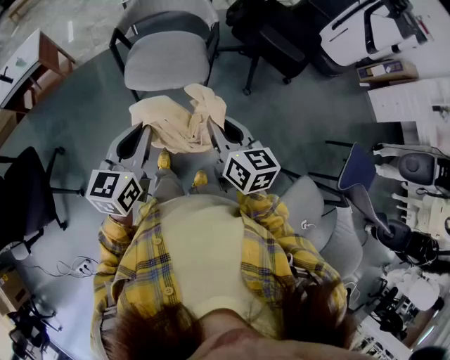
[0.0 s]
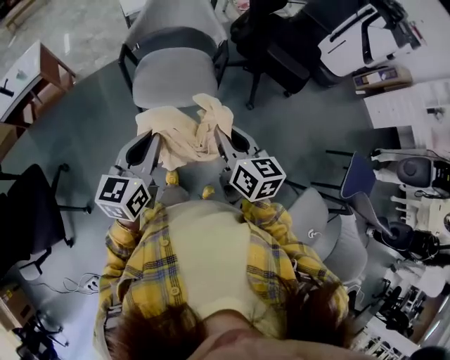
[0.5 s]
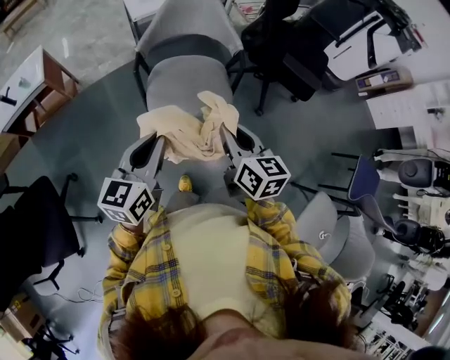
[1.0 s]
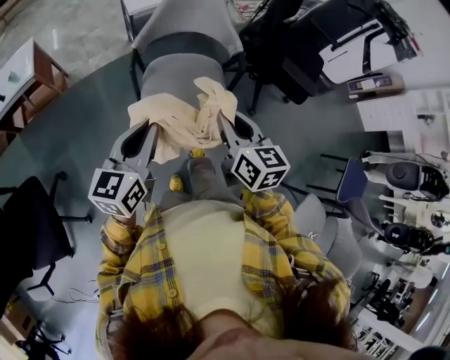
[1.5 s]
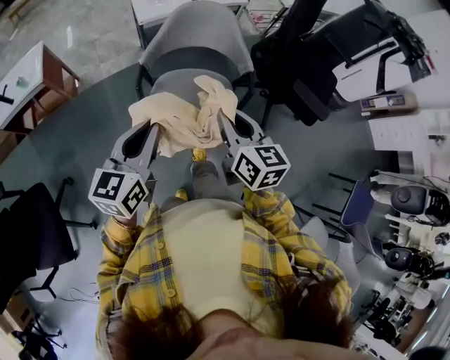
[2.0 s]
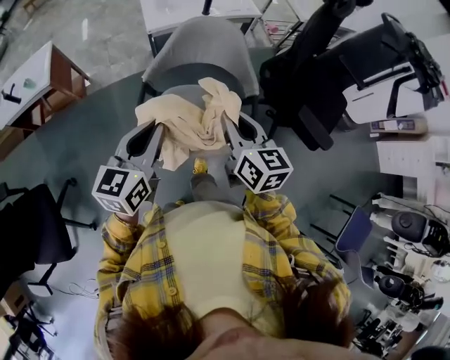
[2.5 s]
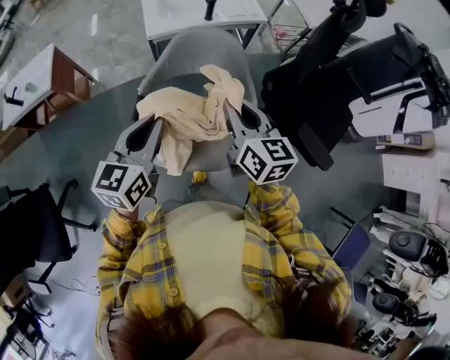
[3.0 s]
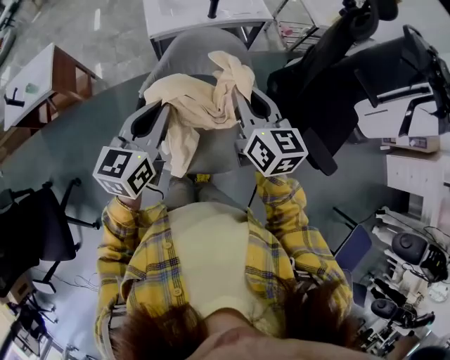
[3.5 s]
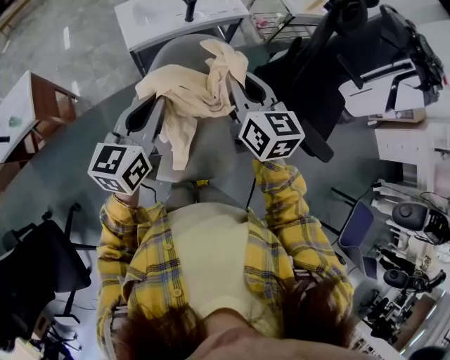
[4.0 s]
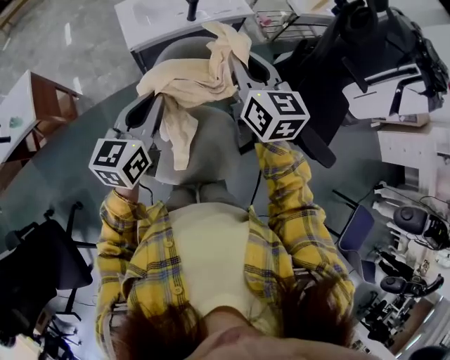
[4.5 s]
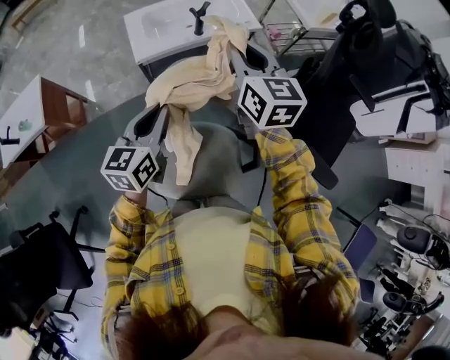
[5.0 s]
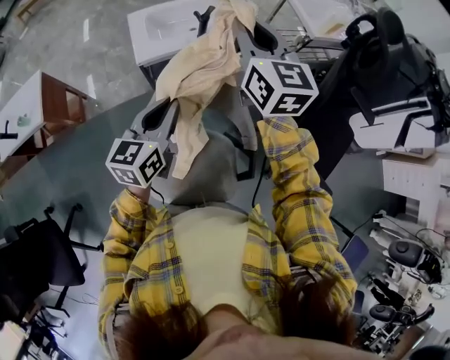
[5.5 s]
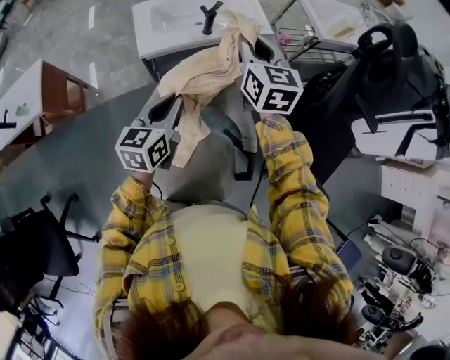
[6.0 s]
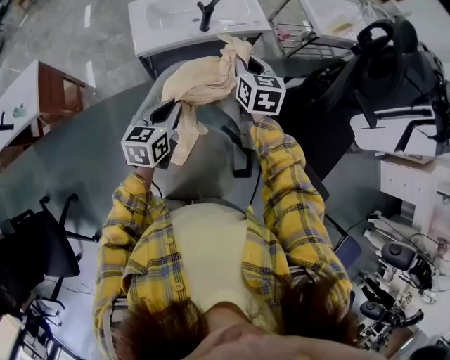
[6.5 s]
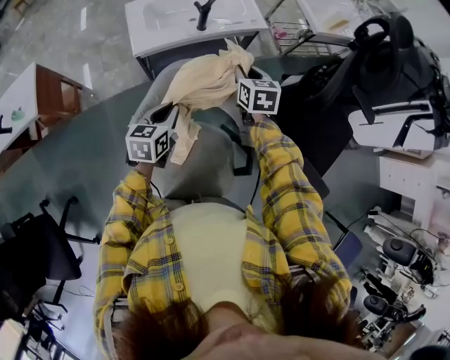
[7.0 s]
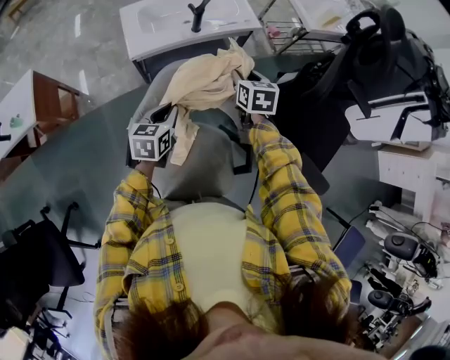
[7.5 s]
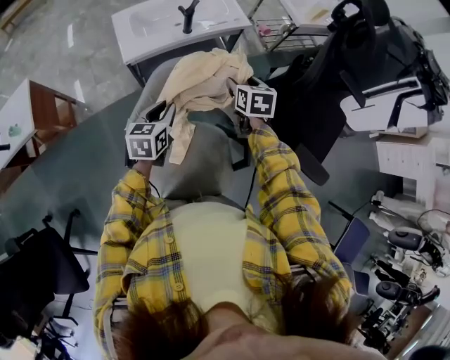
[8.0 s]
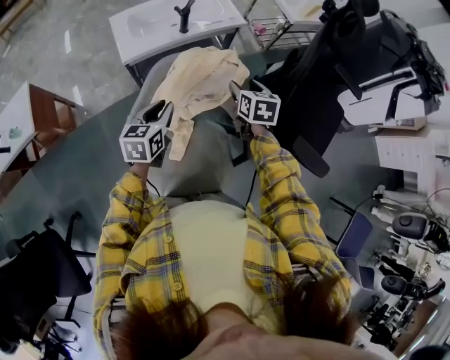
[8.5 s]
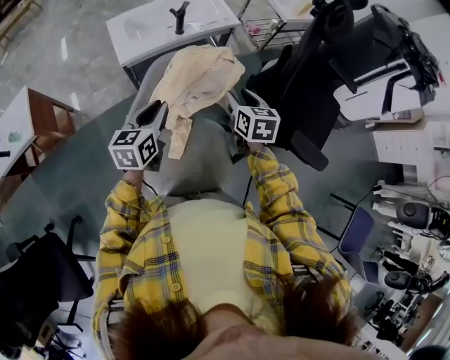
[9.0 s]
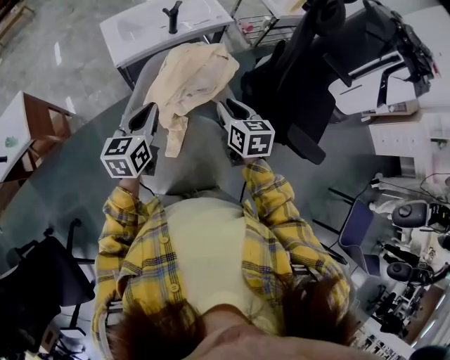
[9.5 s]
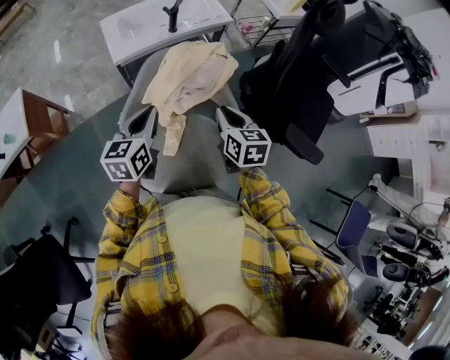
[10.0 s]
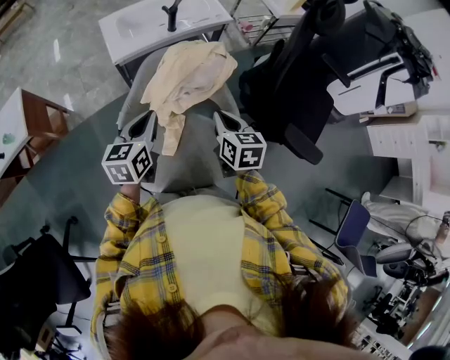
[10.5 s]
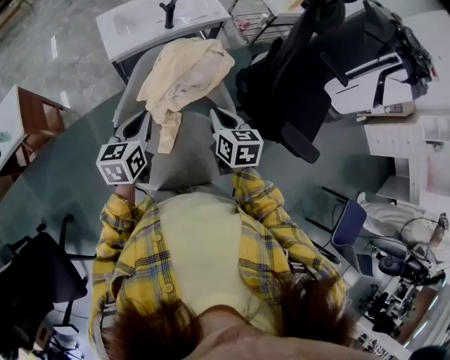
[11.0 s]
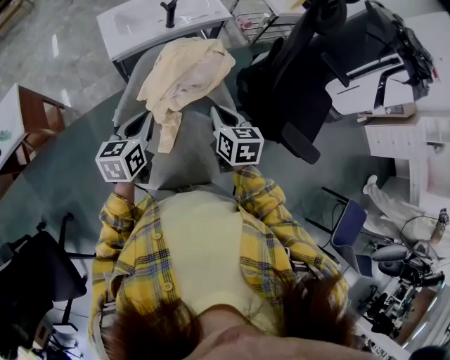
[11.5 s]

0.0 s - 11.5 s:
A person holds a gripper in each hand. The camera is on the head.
0.0 s - 2.0 s: The two grippers go some 25 cm forward and to the left.
2.0 s - 4.0 s: The two grippers go approximately 30 cm forward.
4.0 s - 6.0 s: The left gripper heads forward and downward, covering some 15 cm. The right gripper moves forward, some 25 cm.
6.0 s - 7.5 s: The right gripper is displaced downward by about 20 cm, and changes its angle by approximately 30 degrees. The left gripper travels downward by approximately 10 cm.
7.5 s - 9.5 s: The left gripper travels upward and backward by some 15 cm; the right gripper travels backward by roughly 20 cm, and opens and closes again.
9.5 s - 11.5 s: The right gripper closes.

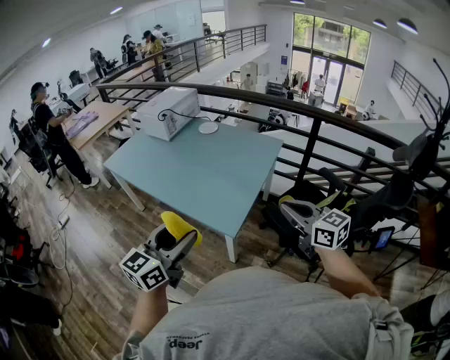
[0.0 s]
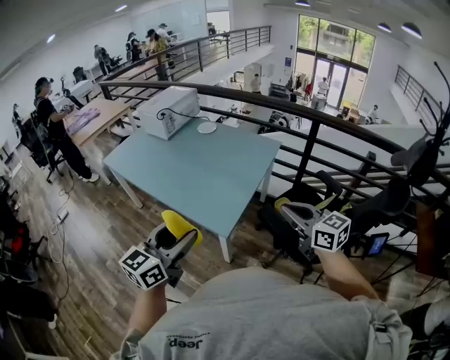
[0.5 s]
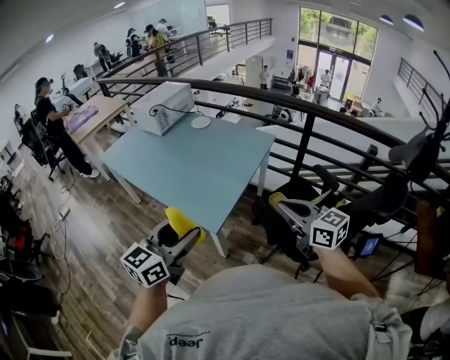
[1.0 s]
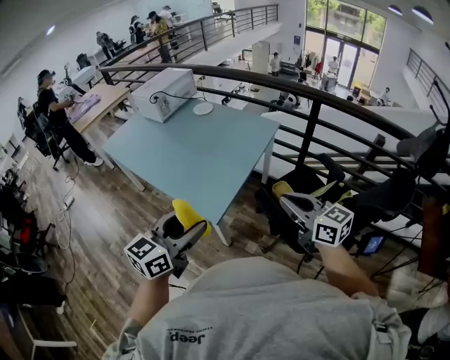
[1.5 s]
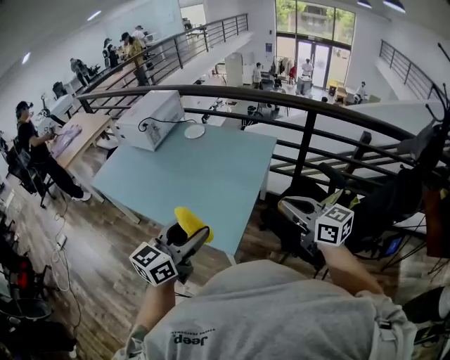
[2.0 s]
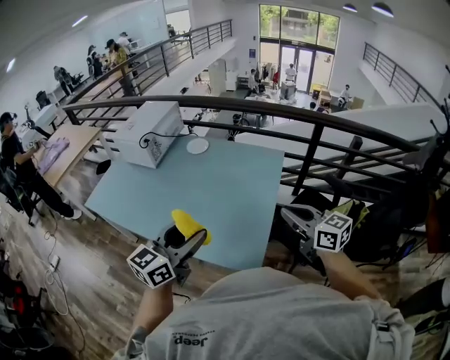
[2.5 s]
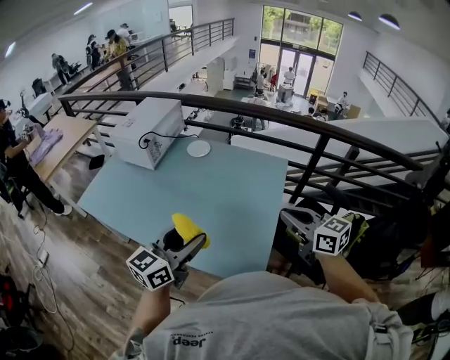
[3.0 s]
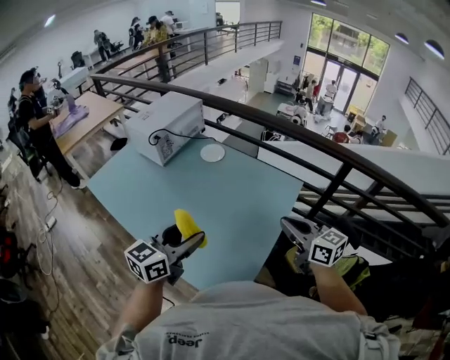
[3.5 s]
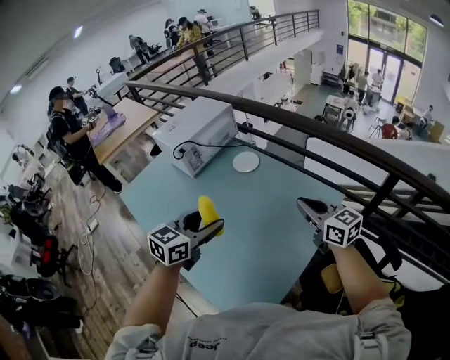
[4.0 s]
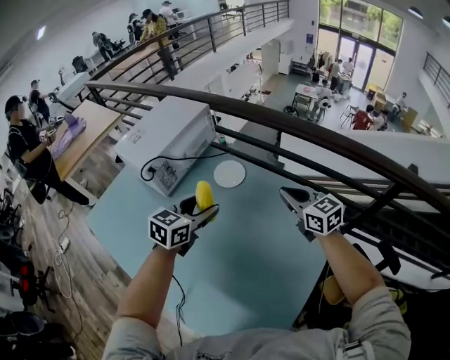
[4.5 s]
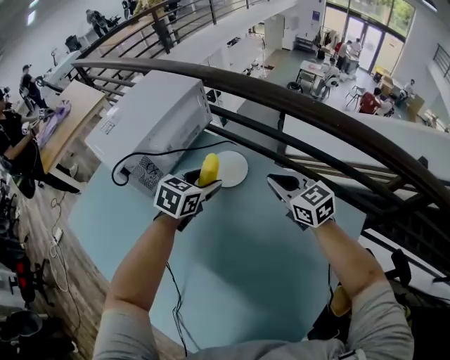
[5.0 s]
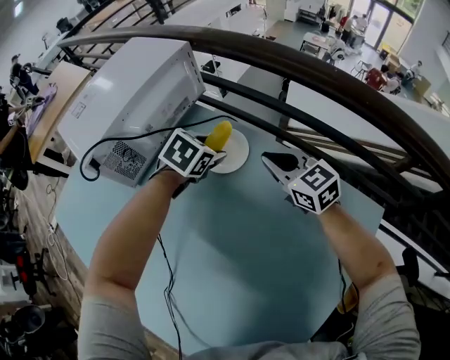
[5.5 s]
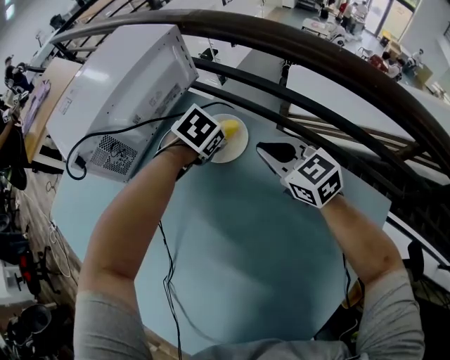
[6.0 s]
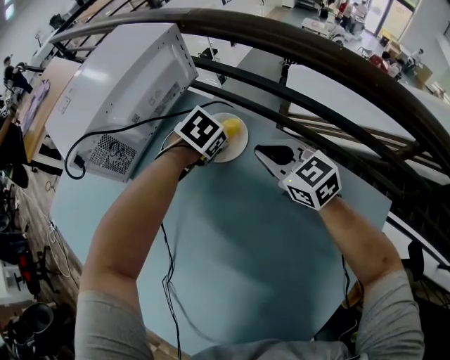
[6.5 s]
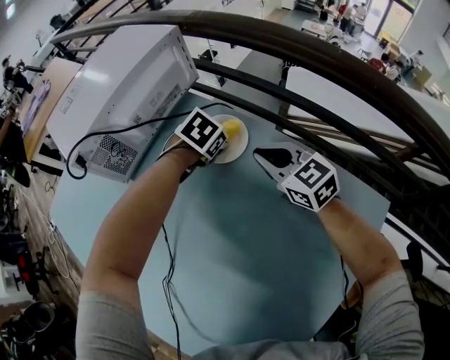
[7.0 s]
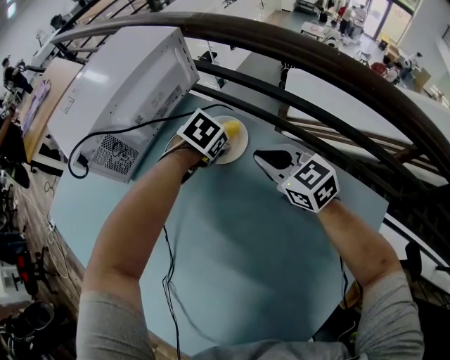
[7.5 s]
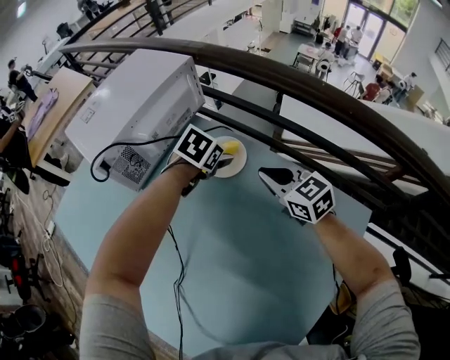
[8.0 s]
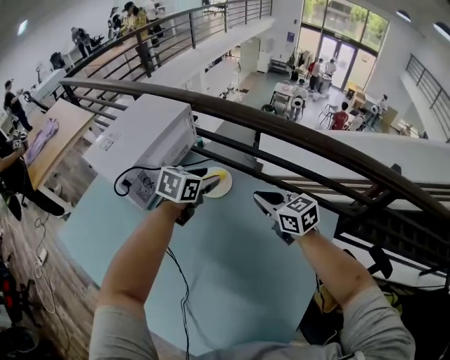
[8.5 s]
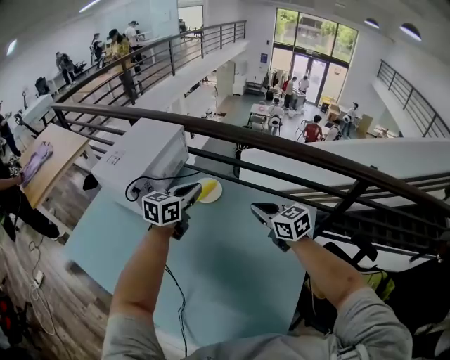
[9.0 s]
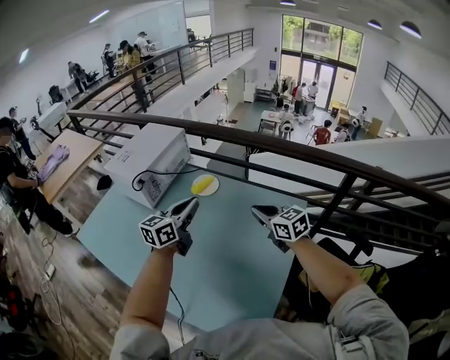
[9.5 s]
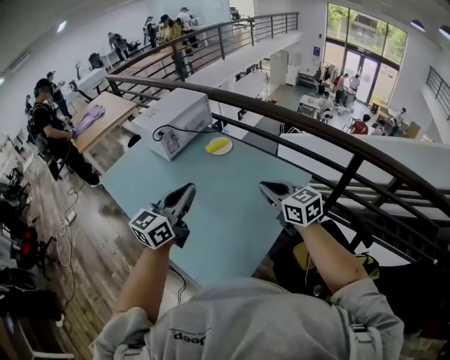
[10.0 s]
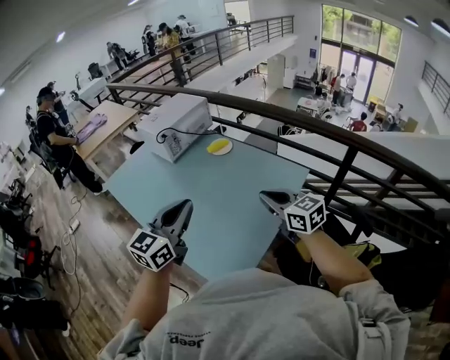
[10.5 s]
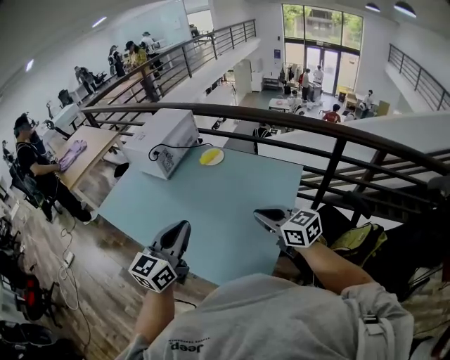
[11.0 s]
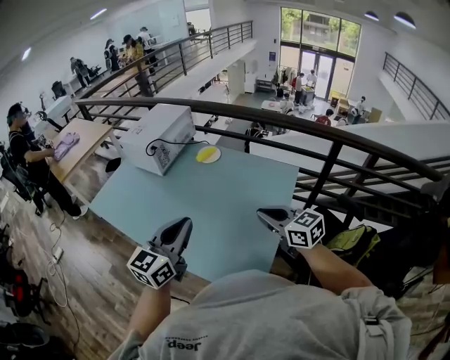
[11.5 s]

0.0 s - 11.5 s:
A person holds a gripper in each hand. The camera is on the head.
0.0 s - 2.0 s: The left gripper goes about 15 cm forward and to the right, while the right gripper shifts about 10 cm forward.
2.0 s - 4.0 s: The grippers both shift forward by some 40 cm. The left gripper turns by approximately 20 degrees.
4.0 s - 6.0 s: The two grippers go approximately 50 cm forward and downward. The left gripper tips its fingers downward by about 50 degrees.
6.0 s - 7.5 s: The grippers move only a little.
7.5 s - 9.5 s: The left gripper heads upward and backward, covering roughly 50 cm, tips its fingers upward by about 70 degrees, and closes. Meanwhile the right gripper shifts roughly 35 cm backward and upward.
9.5 s - 11.5 s: Both grippers move backward, roughly 30 cm.

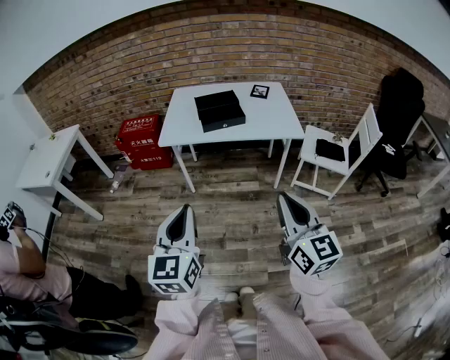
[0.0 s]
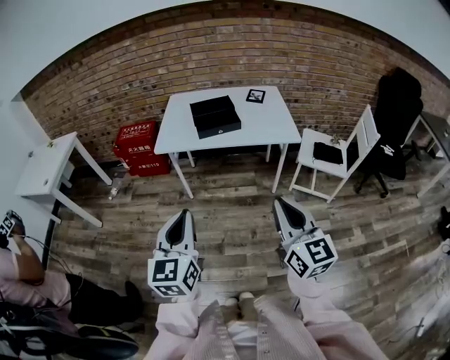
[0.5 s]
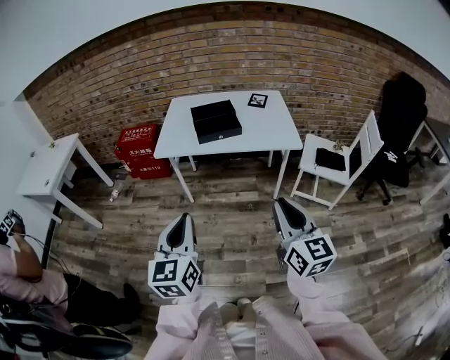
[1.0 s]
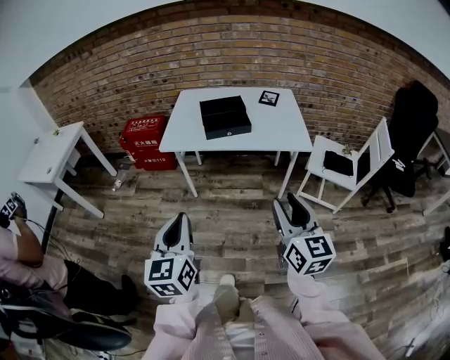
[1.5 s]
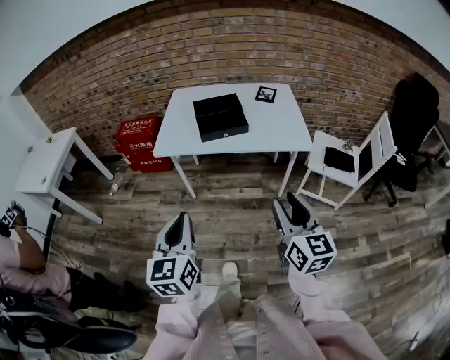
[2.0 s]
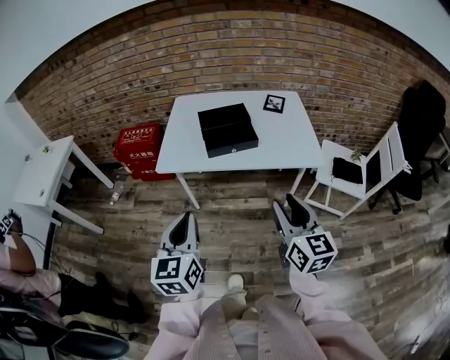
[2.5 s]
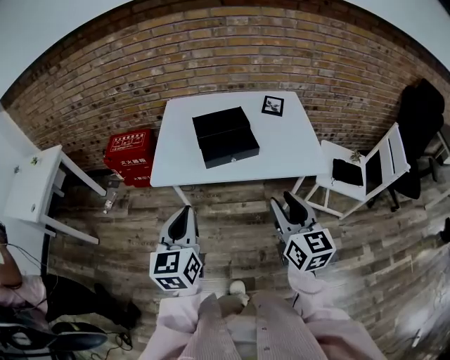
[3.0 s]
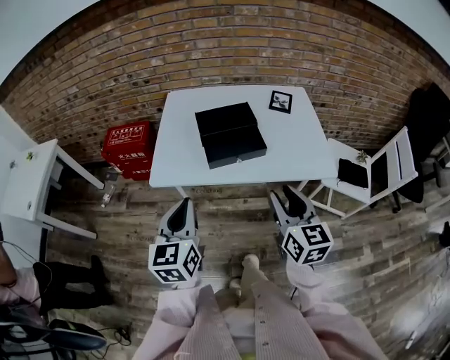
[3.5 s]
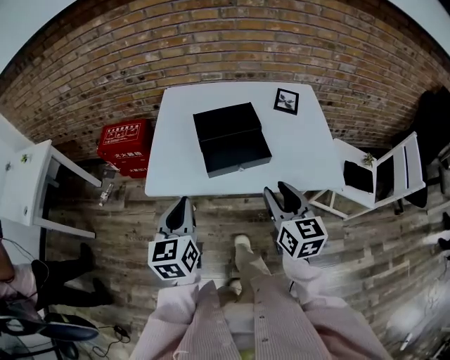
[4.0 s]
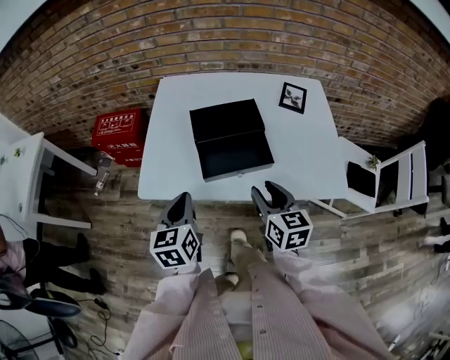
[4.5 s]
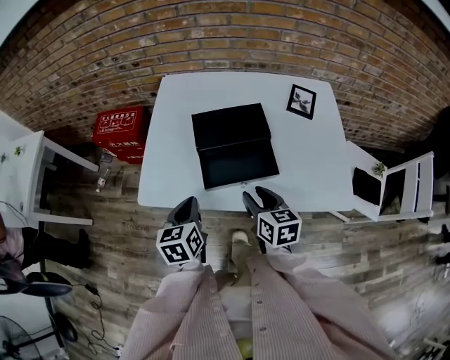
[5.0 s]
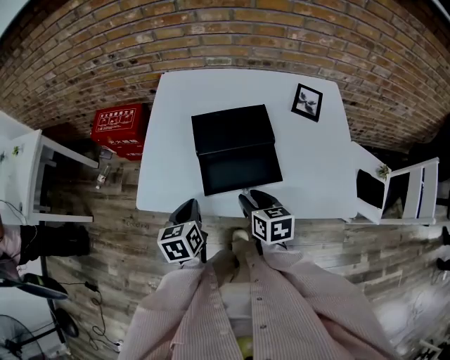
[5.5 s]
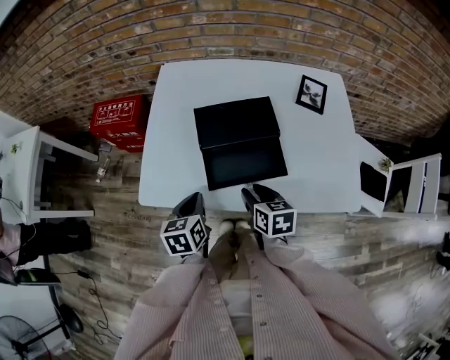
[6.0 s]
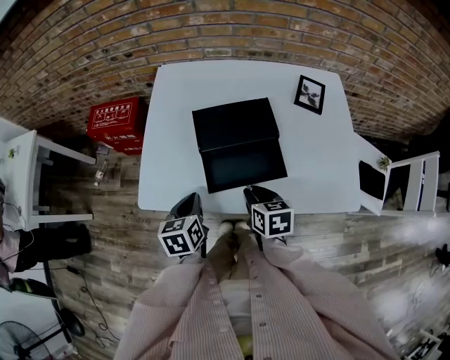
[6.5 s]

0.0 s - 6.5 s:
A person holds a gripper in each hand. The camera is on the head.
0.0 s - 2.0 s: The left gripper is displaced forward by roughly 10 cm. Meanwhile the right gripper goes about 15 cm forward and downward, and opens.
2.0 s - 4.5 s: Both grippers move forward, approximately 40 cm. The right gripper rotates roughly 20 degrees.
4.5 s - 6.5 s: Both grippers travel together downward and forward, about 10 cm. The right gripper turns by some 20 degrees.
